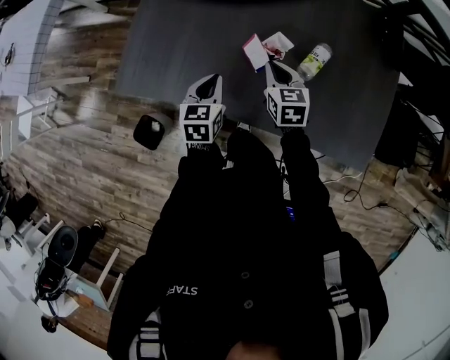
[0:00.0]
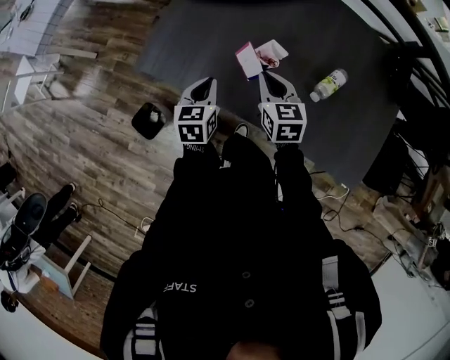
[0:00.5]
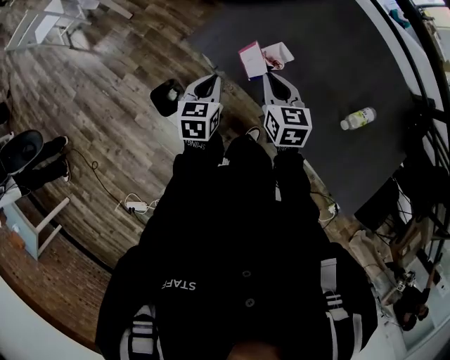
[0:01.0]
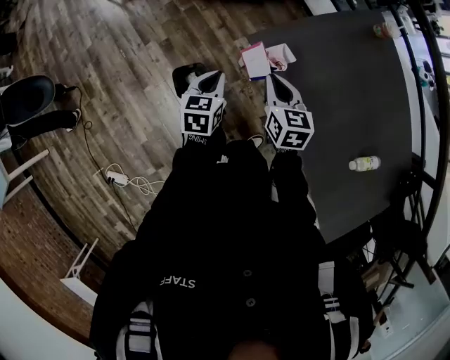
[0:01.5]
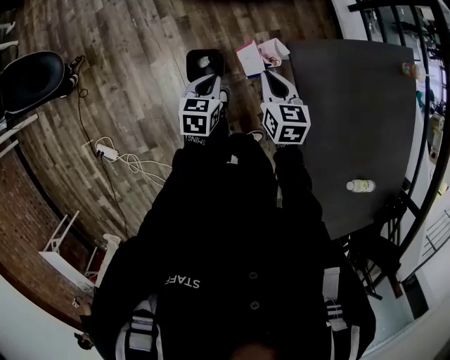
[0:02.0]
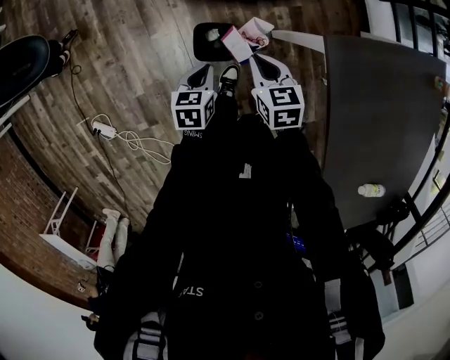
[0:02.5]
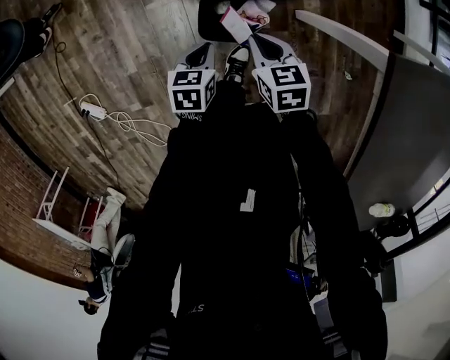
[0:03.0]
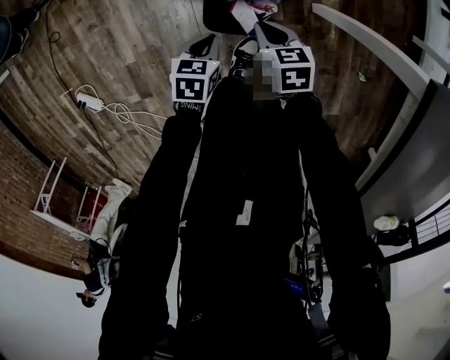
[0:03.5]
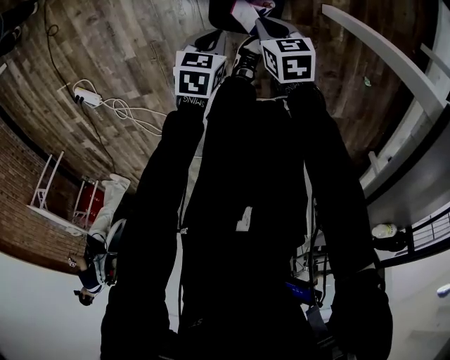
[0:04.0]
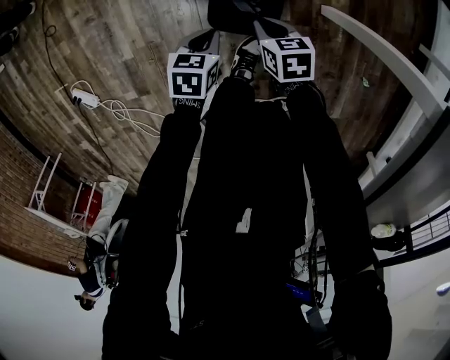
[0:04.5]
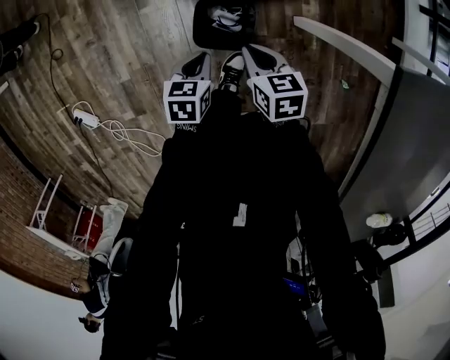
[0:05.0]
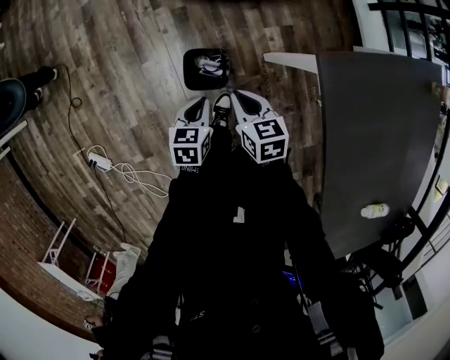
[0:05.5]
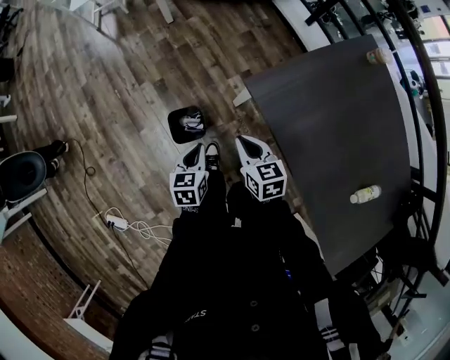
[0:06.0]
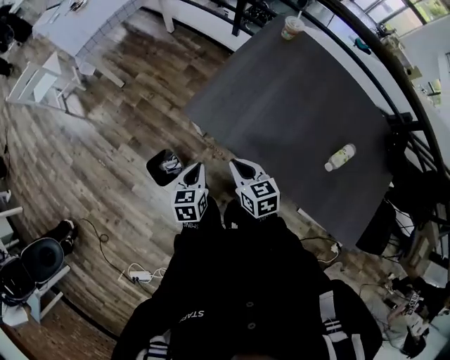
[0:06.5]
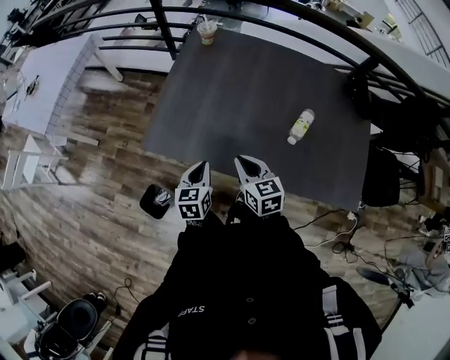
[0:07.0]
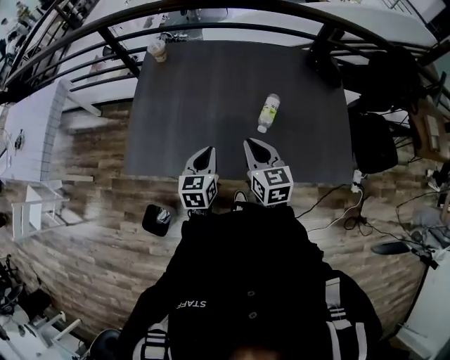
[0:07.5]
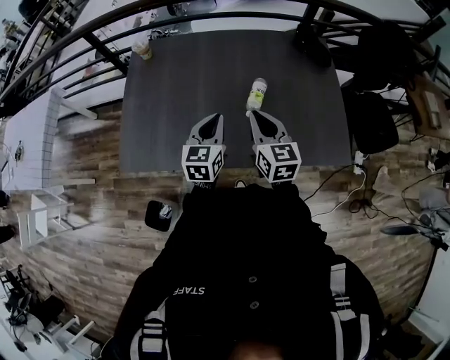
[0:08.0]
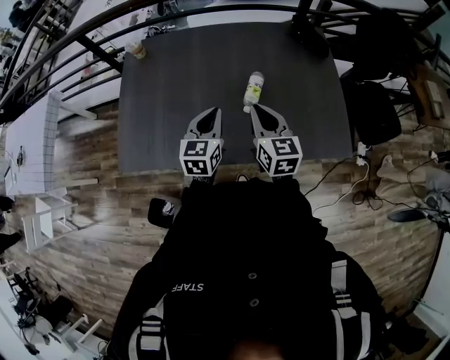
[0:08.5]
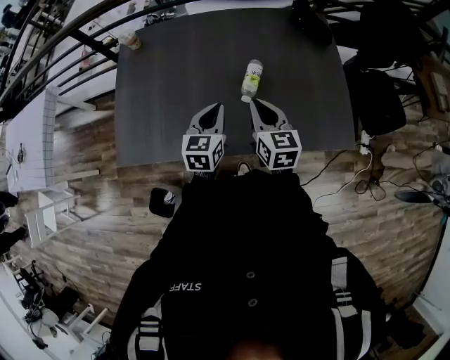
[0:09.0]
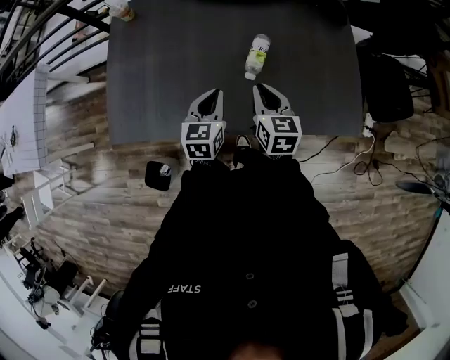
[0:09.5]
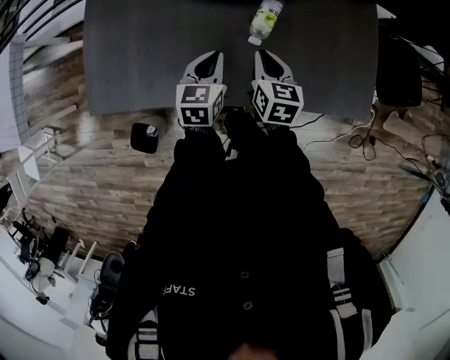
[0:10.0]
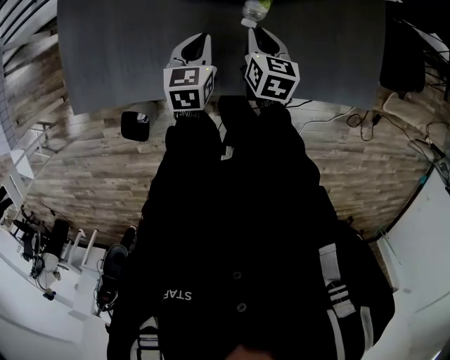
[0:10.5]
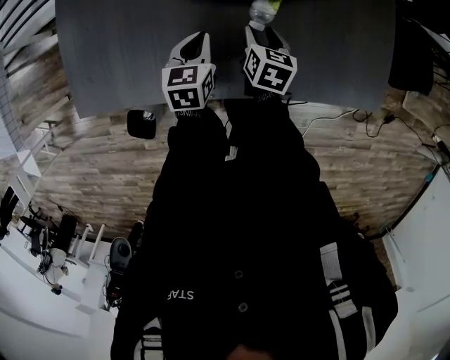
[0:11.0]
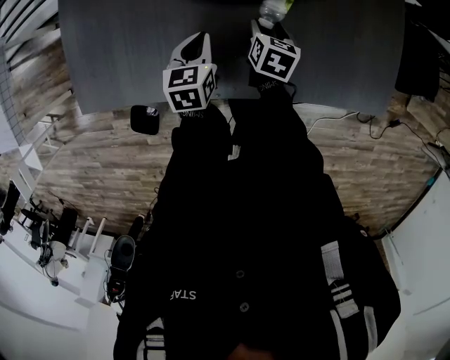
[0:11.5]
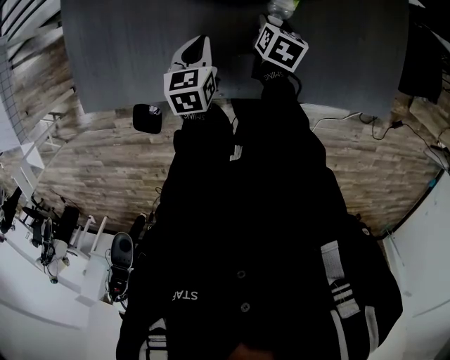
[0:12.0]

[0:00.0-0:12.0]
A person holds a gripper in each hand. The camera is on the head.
0:00.0 to 0:02.0: Both grippers are carried roughly 60 cm. The right gripper rotates about 50 degrees. Meanwhile the left gripper turns by some 50 degrees.
0:02.0 to 0:04.0: Both grippers move downward, some 40 cm. The right gripper turns by roughly 30 degrees.
0:04.0 to 0:06.0: The two grippers go roughly 40 cm upward and to the right. The left gripper changes its angle by some 20 degrees. The right gripper changes its angle by approximately 40 degrees.
0:06.0 to 0:08.0: The two grippers travel together, roughly 60 cm. The left gripper changes its angle by roughly 70 degrees, while the right gripper turns by some 70 degrees.
0:08.0 to 0:10.0: Both grippers move downward, approximately 15 cm. The right gripper swivels some 20 degrees.
0:10.0 to 0:12.0: The left gripper goes about 10 cm downward and to the left; the right gripper travels downward and forward by some 20 cm, swivels roughly 30 degrees, and opens.

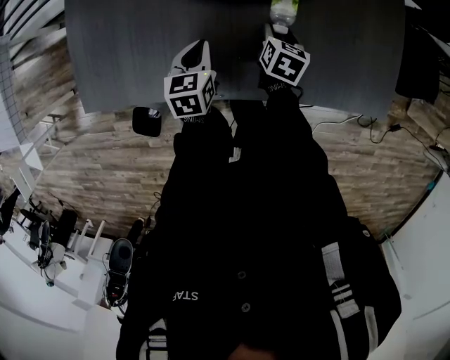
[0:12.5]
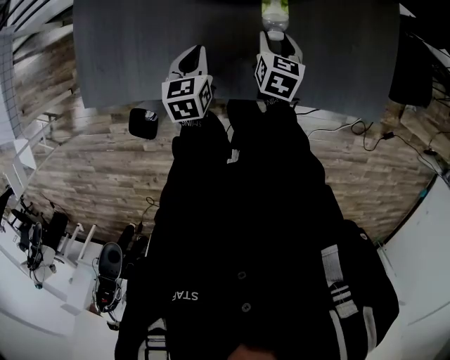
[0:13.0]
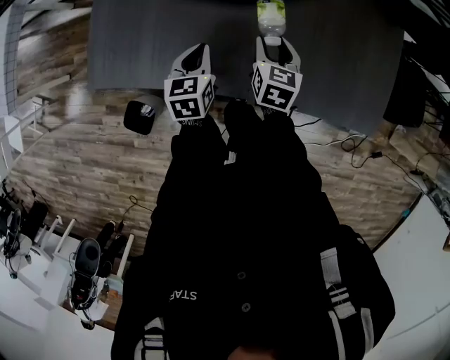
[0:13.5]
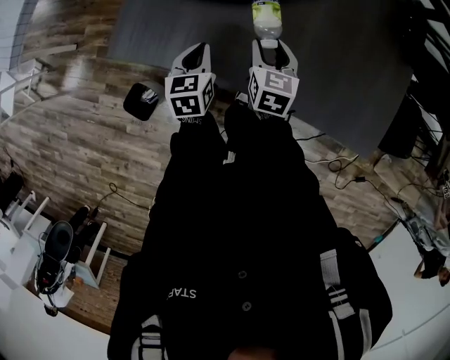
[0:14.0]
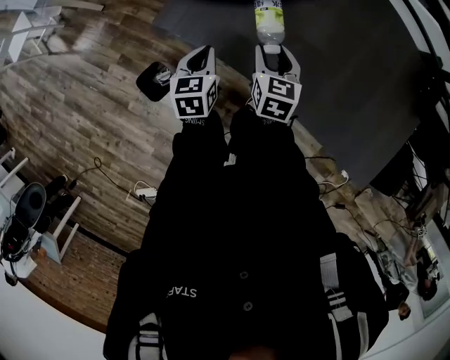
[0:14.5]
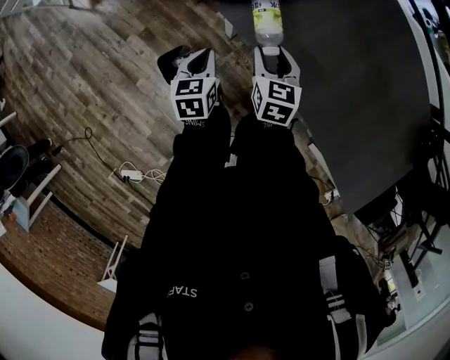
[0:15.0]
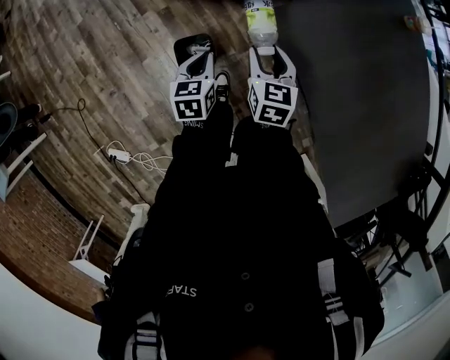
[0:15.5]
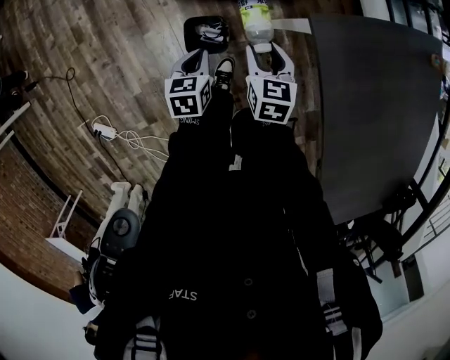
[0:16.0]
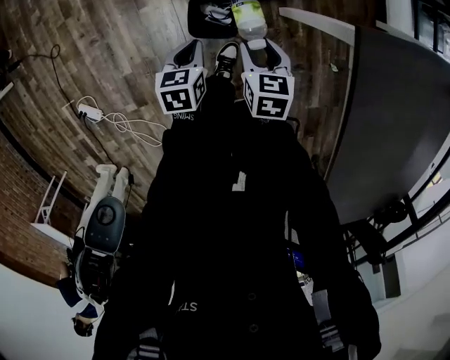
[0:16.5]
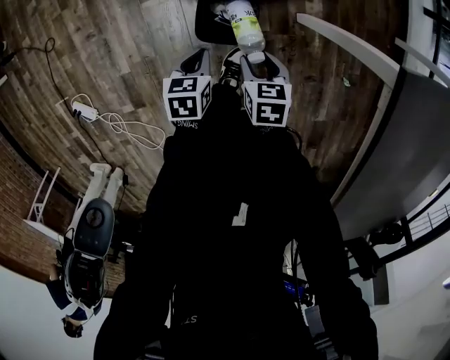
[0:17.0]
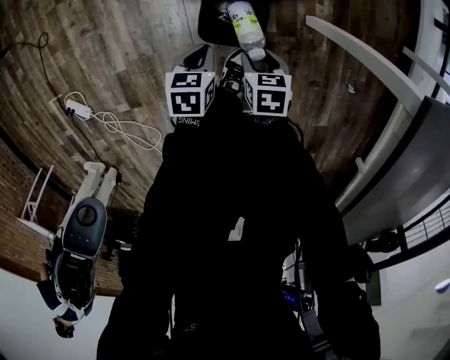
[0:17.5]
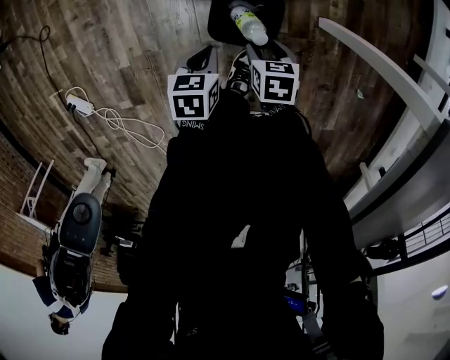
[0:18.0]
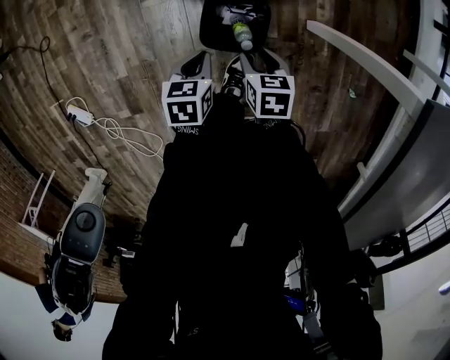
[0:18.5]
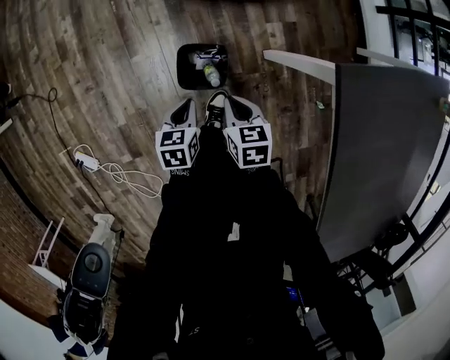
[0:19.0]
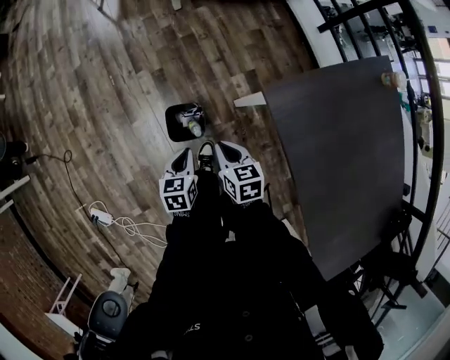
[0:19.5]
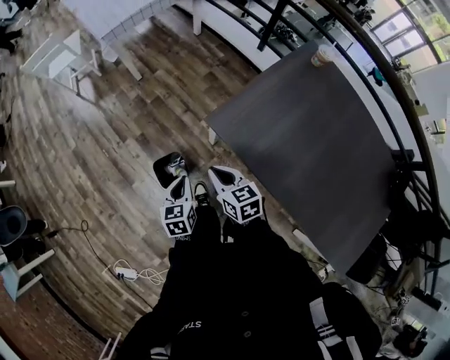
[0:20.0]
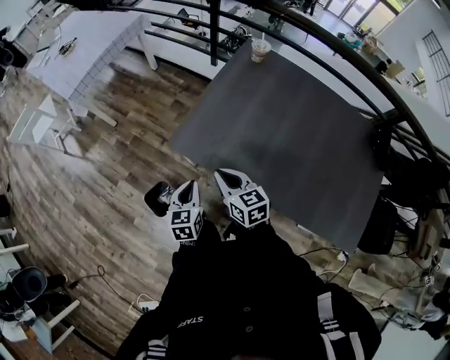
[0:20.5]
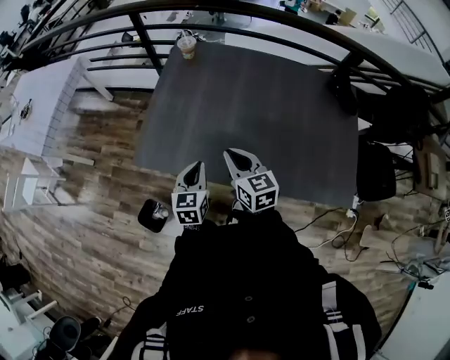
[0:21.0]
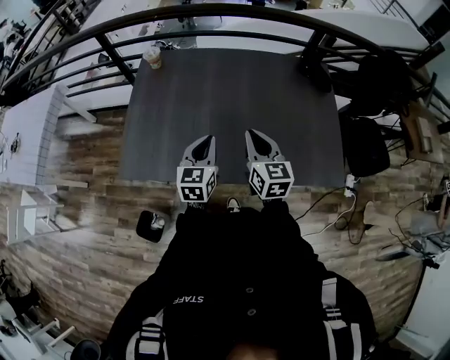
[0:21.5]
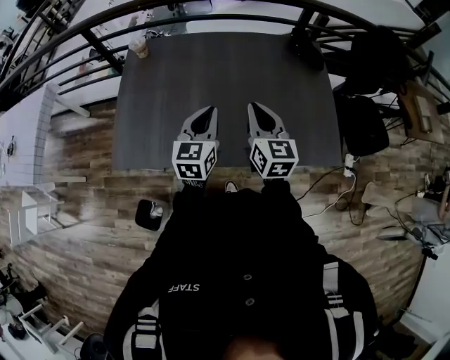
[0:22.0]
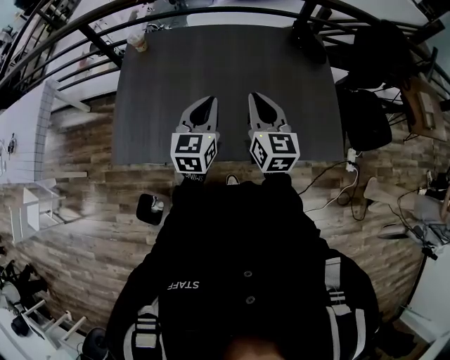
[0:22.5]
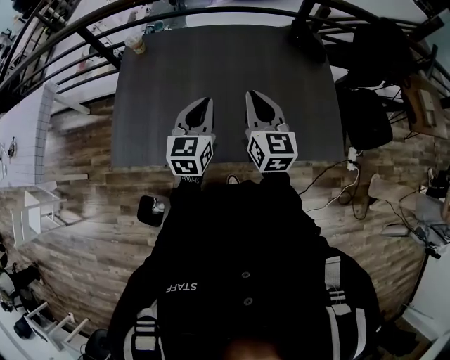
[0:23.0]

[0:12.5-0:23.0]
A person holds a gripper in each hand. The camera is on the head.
0:12.5 to 0:14.5: The right gripper ends up roughly 40 cm from where it was, and swivels roughly 50 degrees; the left gripper moves about 35 cm, and changes its angle by approximately 30 degrees.
0:14.5 to 0:16.5: The pair of grippers is taken roughly 50 cm. The right gripper rotates roughly 50 degrees. The left gripper swivels about 50 degrees.
0:16.5 to 0:19.0: The left gripper reaches about 20 cm downward, then returns; the right gripper reaches about 25 cm downward, then returns, and closes.
0:19.0 to 0:21.0: The two grippers travel together, approximately 50 cm. The left gripper changes its angle by approximately 70 degrees, while the right gripper angles its fingers upward, by roughly 30 degrees.
0:21.0 to 0:23.0: The left gripper heads to the right, upward and forward, covering about 25 cm, and swivels some 20 degrees, while the right gripper goes about 25 cm to the right and upward, and turns by some 30 degrees.

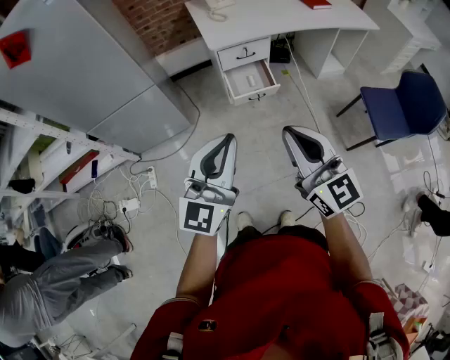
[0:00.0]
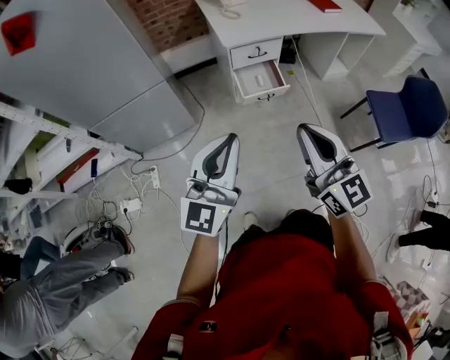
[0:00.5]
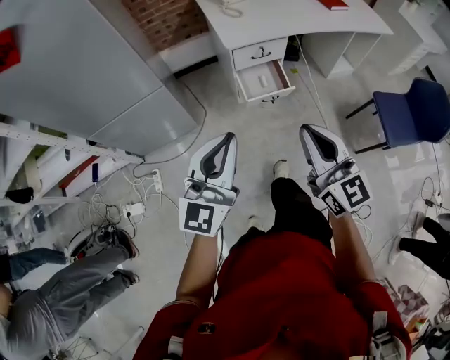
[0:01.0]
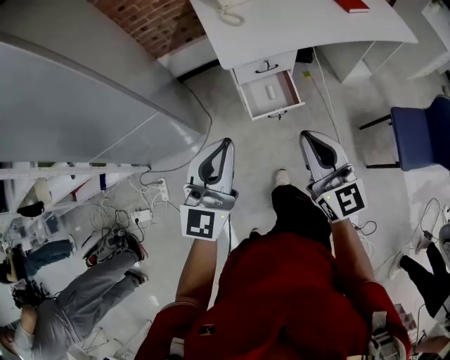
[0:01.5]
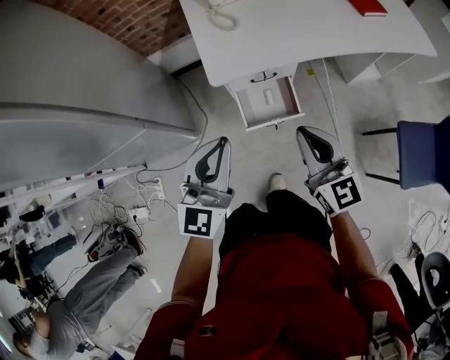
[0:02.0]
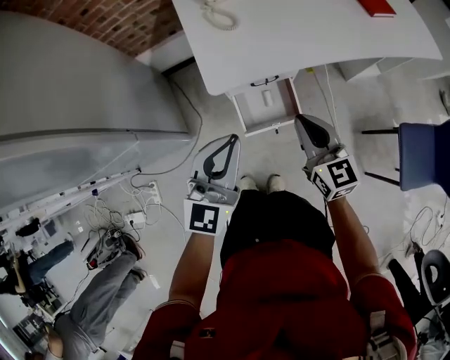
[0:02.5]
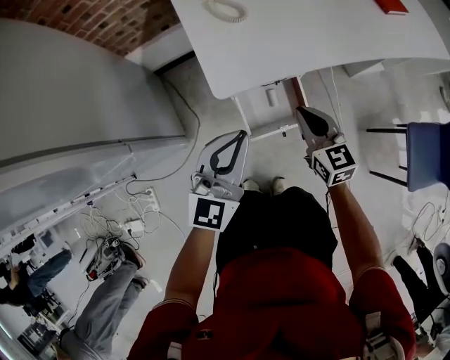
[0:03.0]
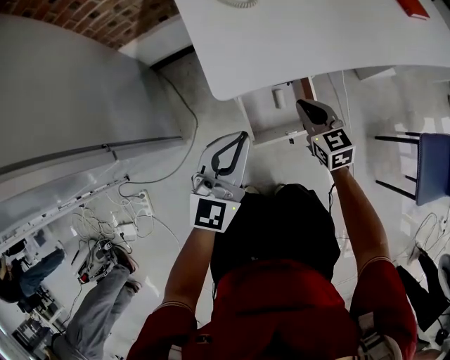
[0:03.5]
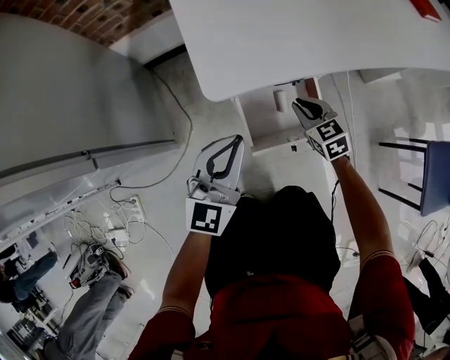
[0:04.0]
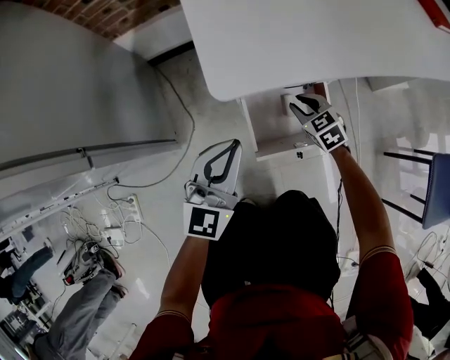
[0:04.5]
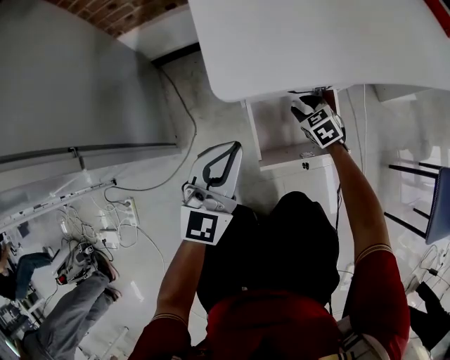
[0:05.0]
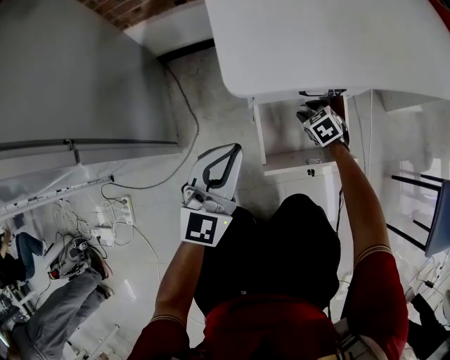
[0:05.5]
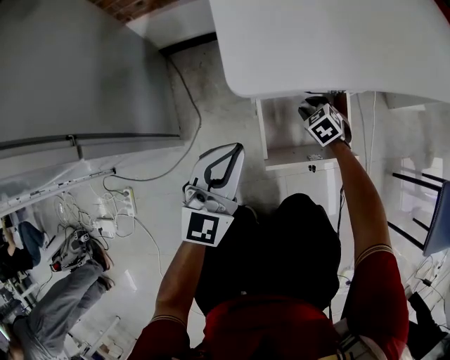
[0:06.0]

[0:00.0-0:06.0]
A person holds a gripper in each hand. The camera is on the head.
0:00.0 to 0:02.0: The two grippers travel together, forward, about 40 cm.
0:02.0 to 0:04.0: The two grippers go about 40 cm downward and forward. The right gripper tips its fingers downward by some 30 degrees.
0:04.0 to 0:06.0: The right gripper goes about 15 cm downward, turns by some 30 degrees, and opens up, while the left gripper shifts approximately 5 cm downward.
